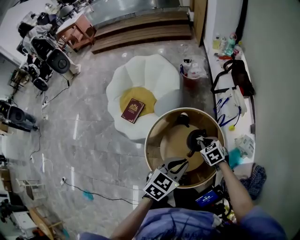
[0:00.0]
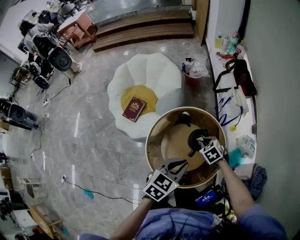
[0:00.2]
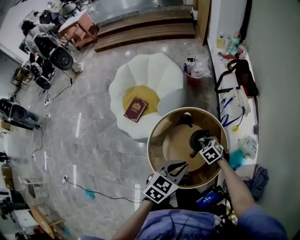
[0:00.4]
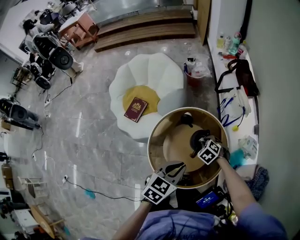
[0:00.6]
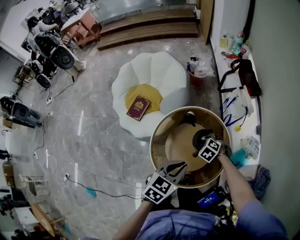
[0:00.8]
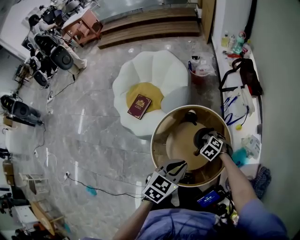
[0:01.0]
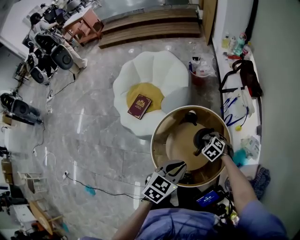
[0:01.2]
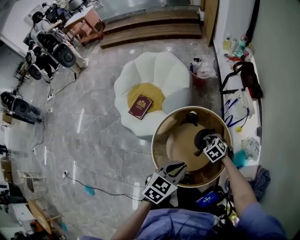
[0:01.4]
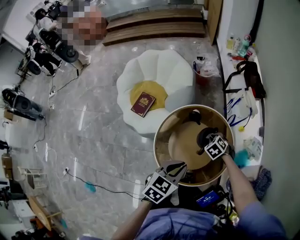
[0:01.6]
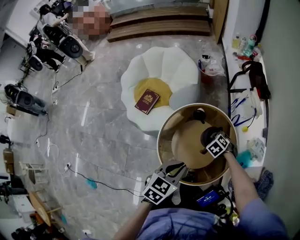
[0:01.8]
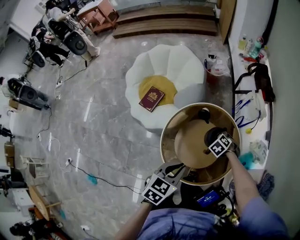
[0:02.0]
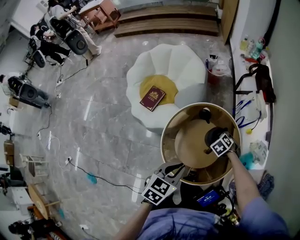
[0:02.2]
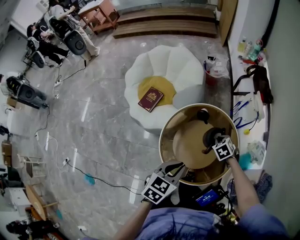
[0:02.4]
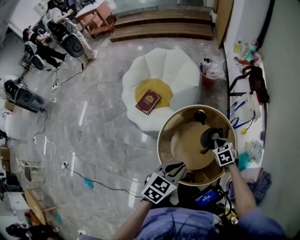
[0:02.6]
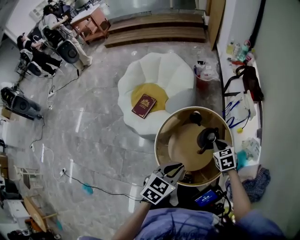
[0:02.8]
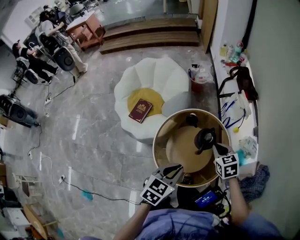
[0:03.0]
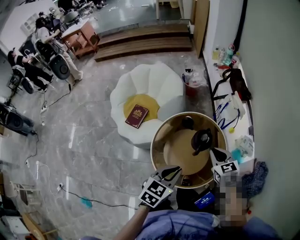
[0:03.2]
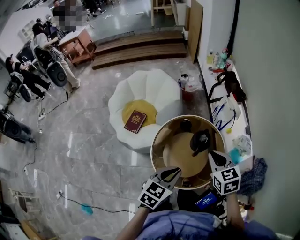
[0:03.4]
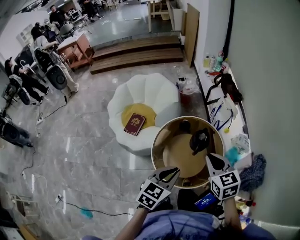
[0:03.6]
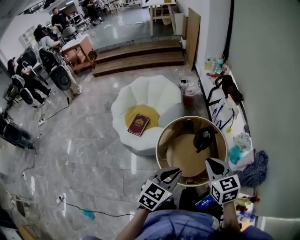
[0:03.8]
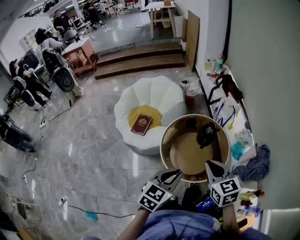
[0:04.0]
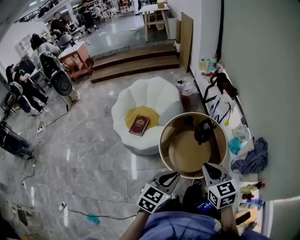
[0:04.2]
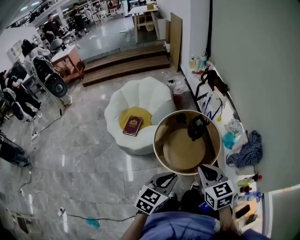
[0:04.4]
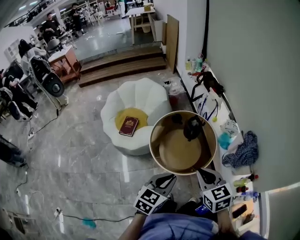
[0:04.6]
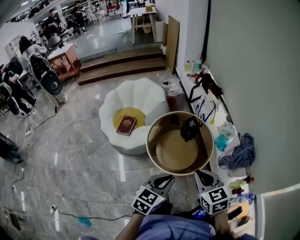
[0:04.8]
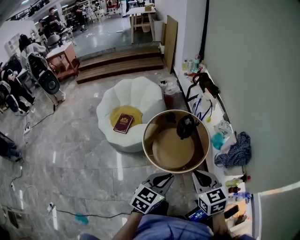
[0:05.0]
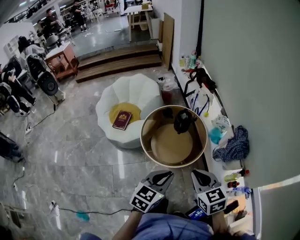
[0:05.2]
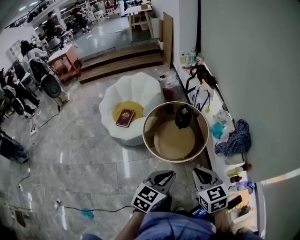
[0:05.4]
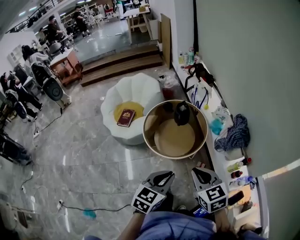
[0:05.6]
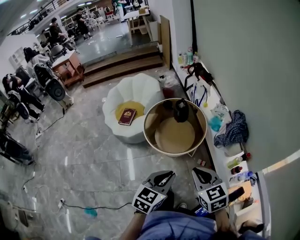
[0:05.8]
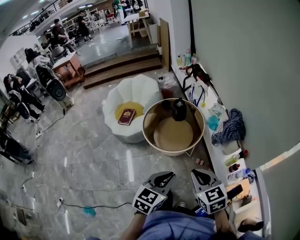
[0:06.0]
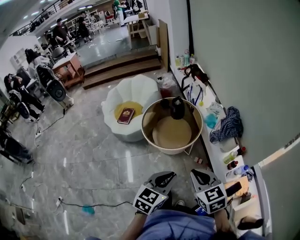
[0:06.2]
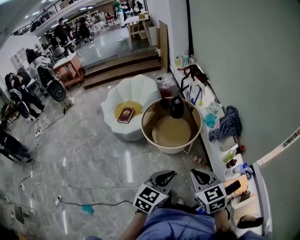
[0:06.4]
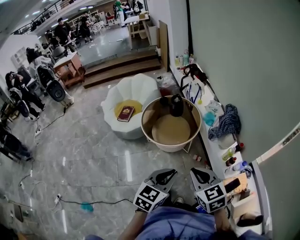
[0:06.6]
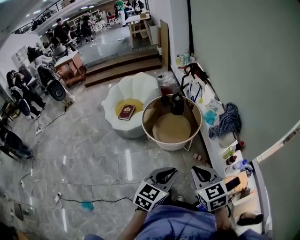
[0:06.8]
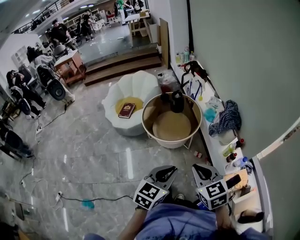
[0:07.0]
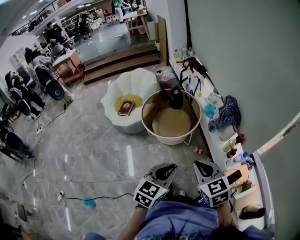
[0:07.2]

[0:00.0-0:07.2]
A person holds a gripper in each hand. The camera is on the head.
0:00.0 to 0:01.4: The left gripper ends up about 5 cm from where it was.
0:01.4 to 0:02.8: The right gripper heads upward, covering about 10 cm, and swivels approximately 20 degrees, while the left gripper moves approximately 5 cm.
0:02.8 to 0:04.4: The right gripper is displaced backward and upward by approximately 40 cm, and turns by about 30 degrees, while the left gripper moves backward, about 25 cm.
0:04.4 to 0:05.8: Both grippers travel together backward and to the right, roughly 25 cm.
0:05.8 to 0:07.2: The left gripper travels backward and to the right by roughly 15 cm. The right gripper heads backward, covering about 10 cm.

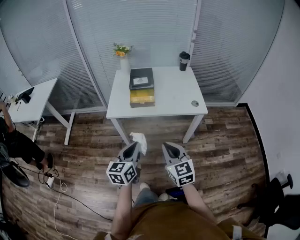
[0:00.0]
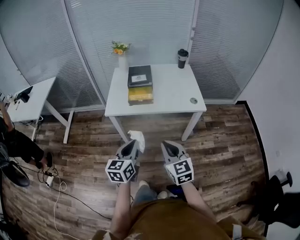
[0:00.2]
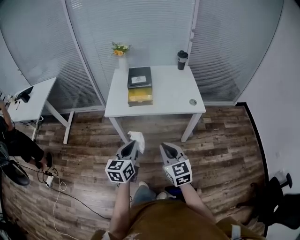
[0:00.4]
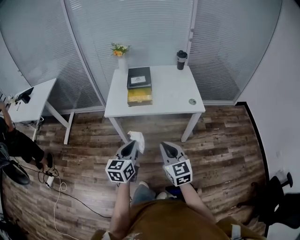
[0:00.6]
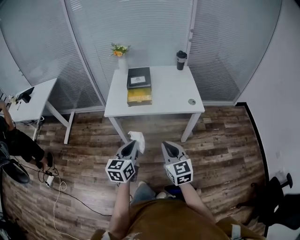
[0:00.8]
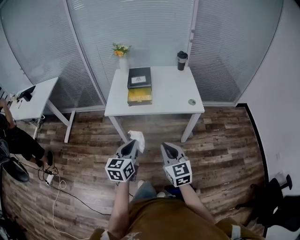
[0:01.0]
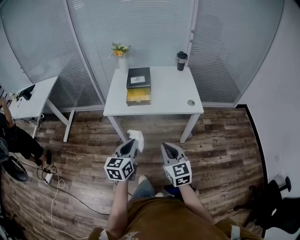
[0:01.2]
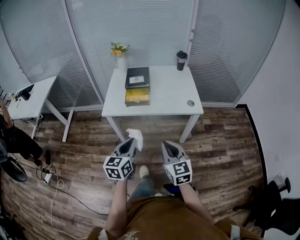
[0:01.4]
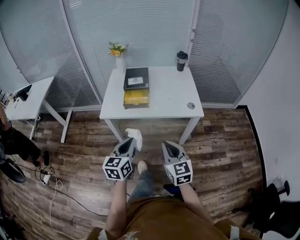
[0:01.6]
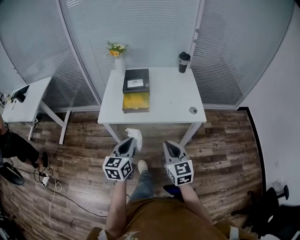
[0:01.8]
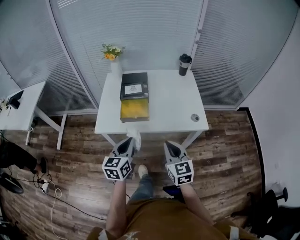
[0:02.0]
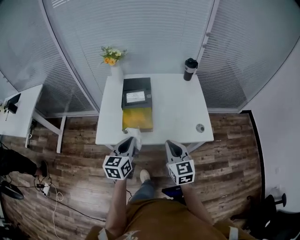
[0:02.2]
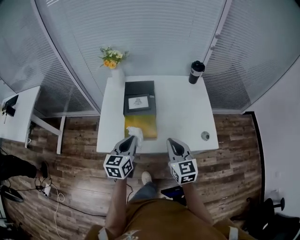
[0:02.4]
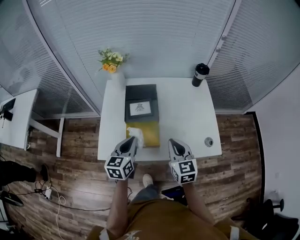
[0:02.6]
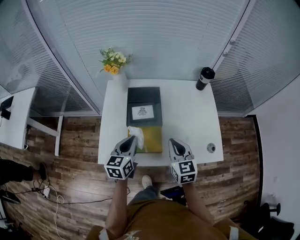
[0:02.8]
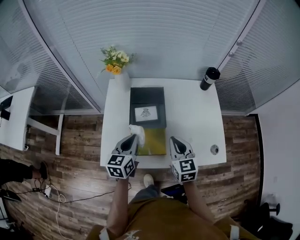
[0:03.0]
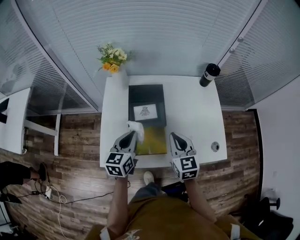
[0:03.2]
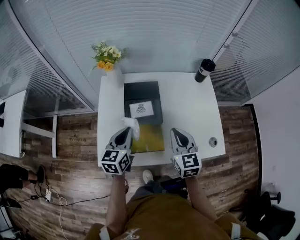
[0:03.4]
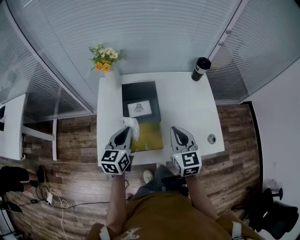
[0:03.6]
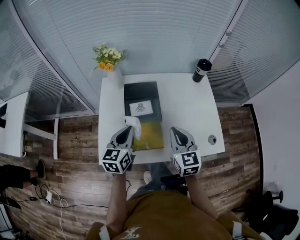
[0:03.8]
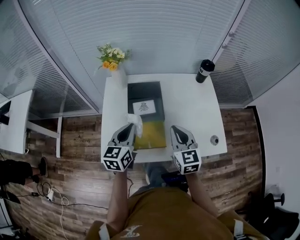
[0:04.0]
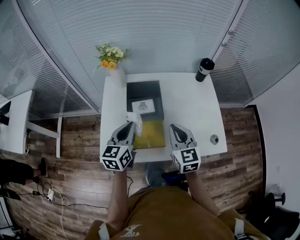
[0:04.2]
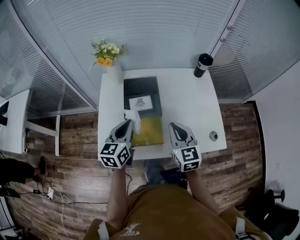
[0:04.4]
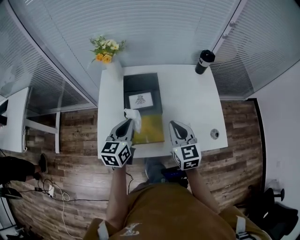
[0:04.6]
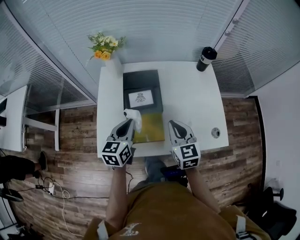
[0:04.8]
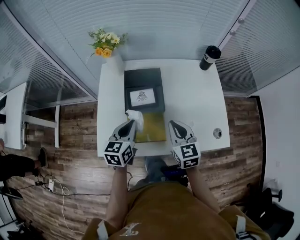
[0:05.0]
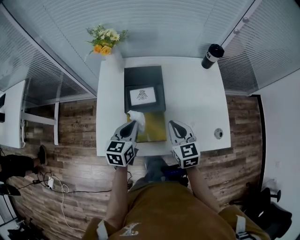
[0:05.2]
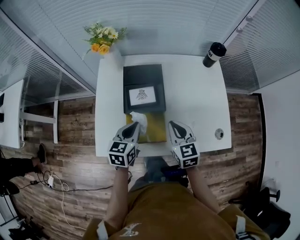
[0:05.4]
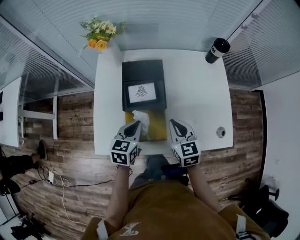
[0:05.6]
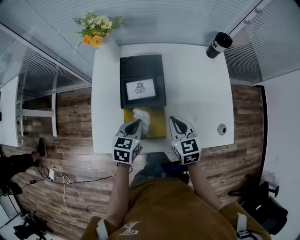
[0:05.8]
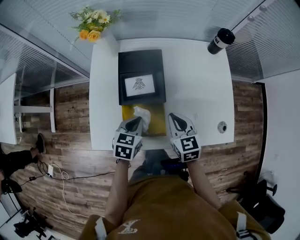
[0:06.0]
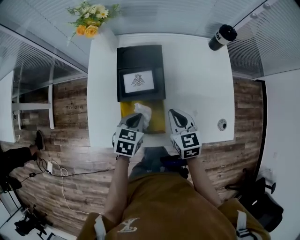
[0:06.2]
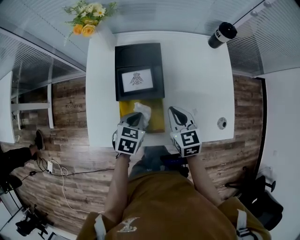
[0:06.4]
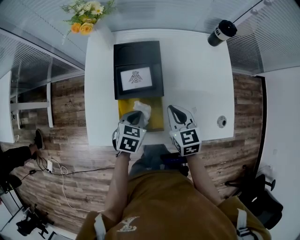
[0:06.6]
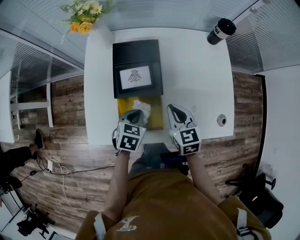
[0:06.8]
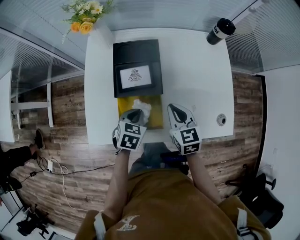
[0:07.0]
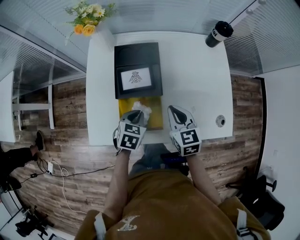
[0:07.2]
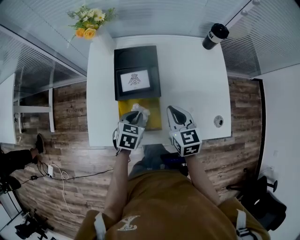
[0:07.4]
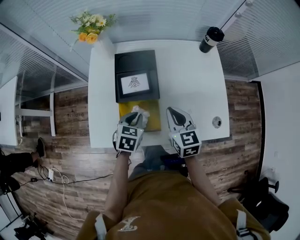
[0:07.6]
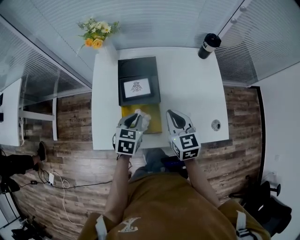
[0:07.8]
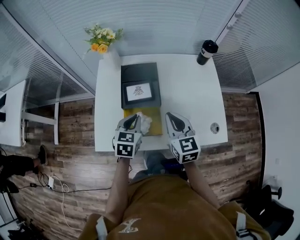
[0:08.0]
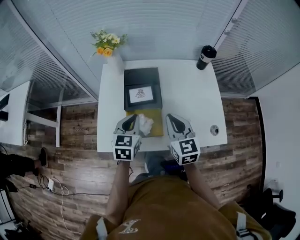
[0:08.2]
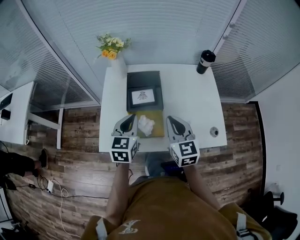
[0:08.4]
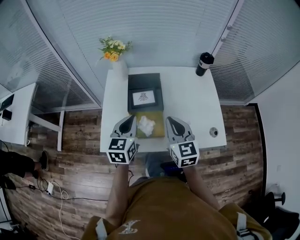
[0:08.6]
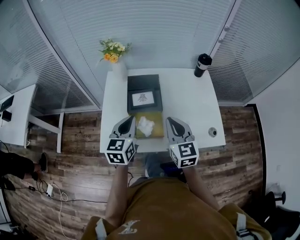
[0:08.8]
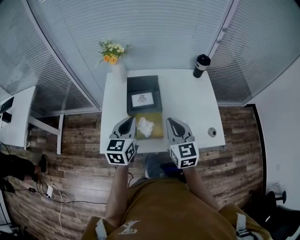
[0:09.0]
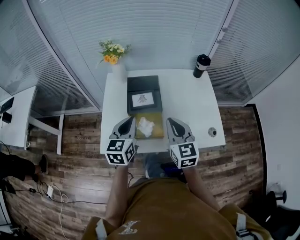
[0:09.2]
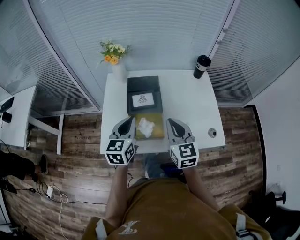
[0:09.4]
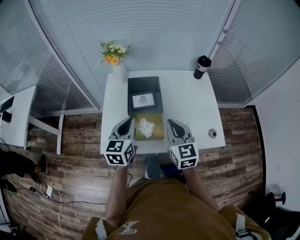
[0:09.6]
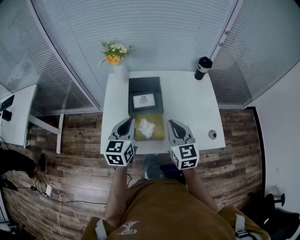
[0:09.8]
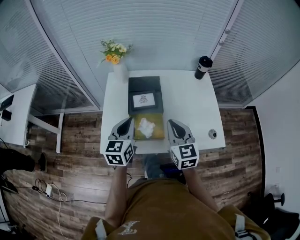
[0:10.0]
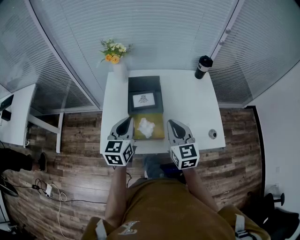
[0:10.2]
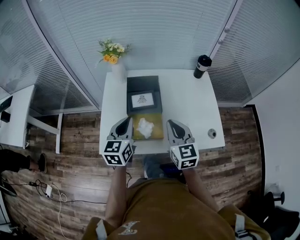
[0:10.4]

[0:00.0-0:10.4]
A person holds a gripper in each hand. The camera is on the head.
0:00.0 to 0:01.4: The grippers stay close to where they were, moving slightly.
0:01.4 to 0:03.0: Both grippers are carried forward, about 50 cm.
0:03.0 to 0:04.4: The grippers move only a little.
0:04.4 to 0:06.0: Both grippers move downward, some 15 cm. The left gripper swivels some 30 degrees.
0:06.0 to 0:07.4: The grippers make only small movements.
0:07.4 to 0:09.0: The right gripper heads upward and backward, covering approximately 15 cm. The left gripper shifts roughly 20 cm upward, and tilts its fingers roughly 40 degrees upward.
0:09.0 to 0:10.4: The grippers move only a little.

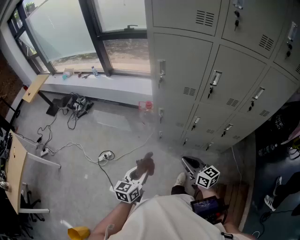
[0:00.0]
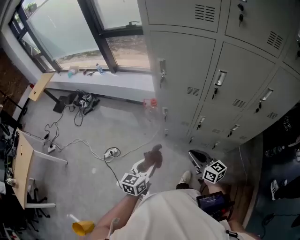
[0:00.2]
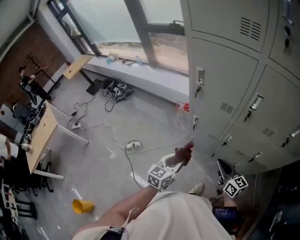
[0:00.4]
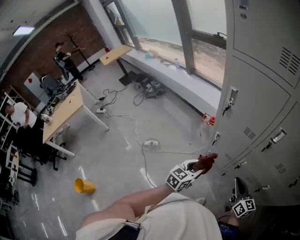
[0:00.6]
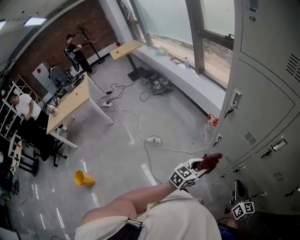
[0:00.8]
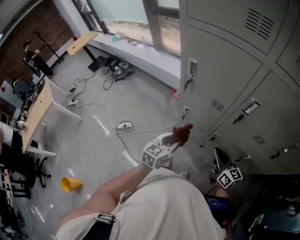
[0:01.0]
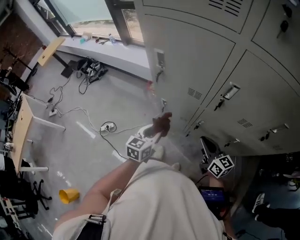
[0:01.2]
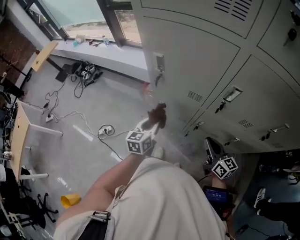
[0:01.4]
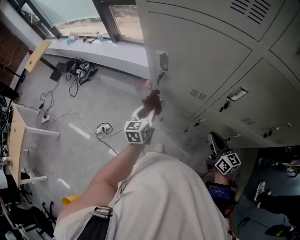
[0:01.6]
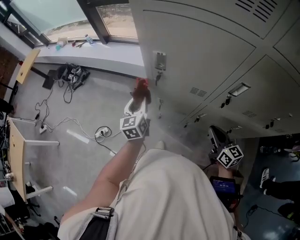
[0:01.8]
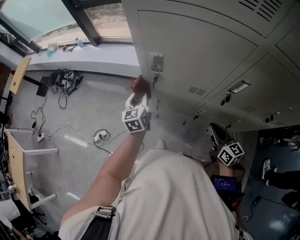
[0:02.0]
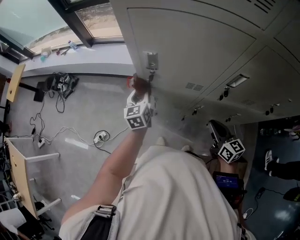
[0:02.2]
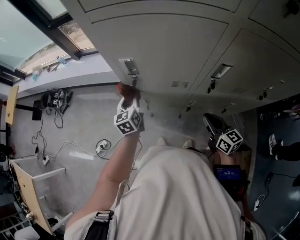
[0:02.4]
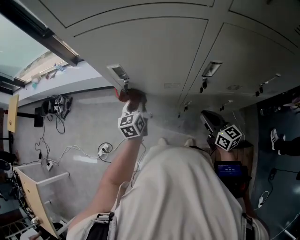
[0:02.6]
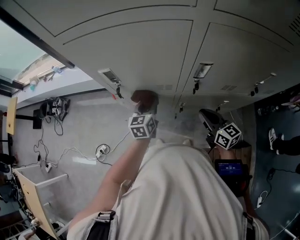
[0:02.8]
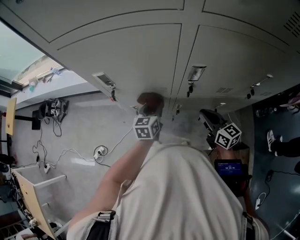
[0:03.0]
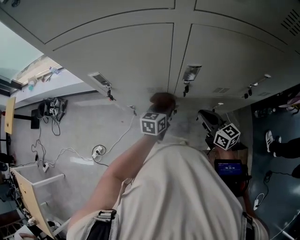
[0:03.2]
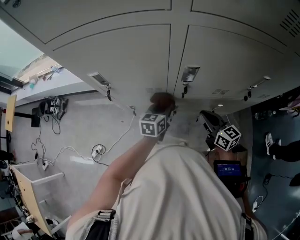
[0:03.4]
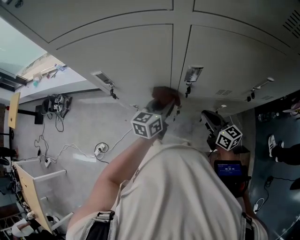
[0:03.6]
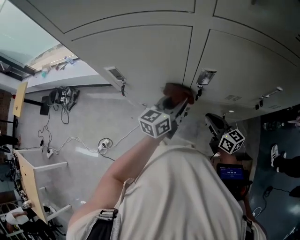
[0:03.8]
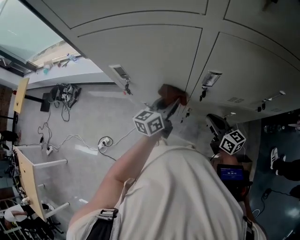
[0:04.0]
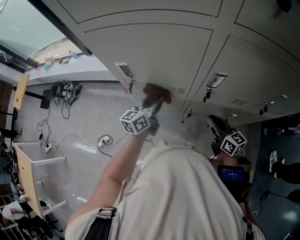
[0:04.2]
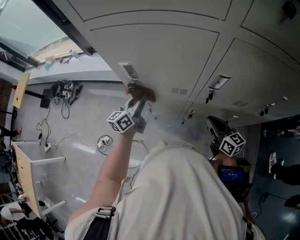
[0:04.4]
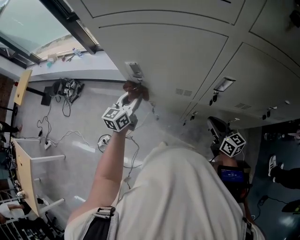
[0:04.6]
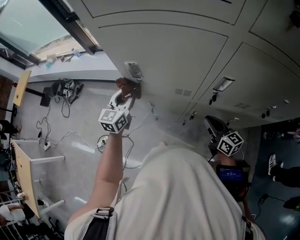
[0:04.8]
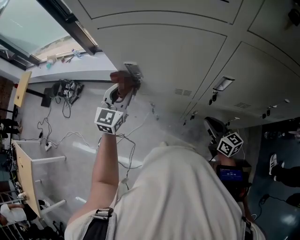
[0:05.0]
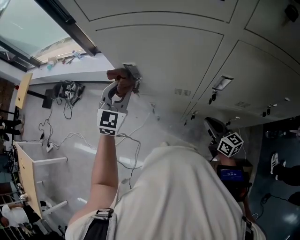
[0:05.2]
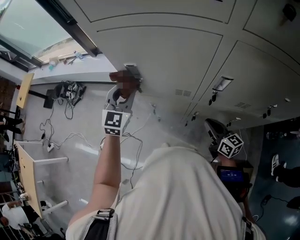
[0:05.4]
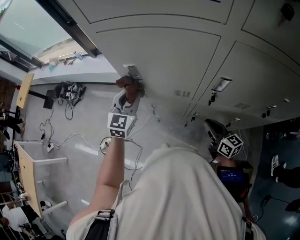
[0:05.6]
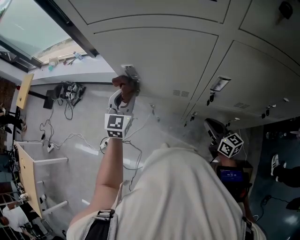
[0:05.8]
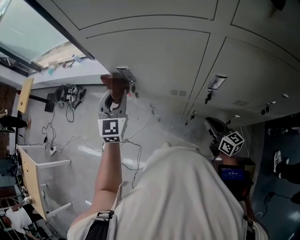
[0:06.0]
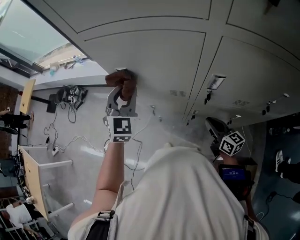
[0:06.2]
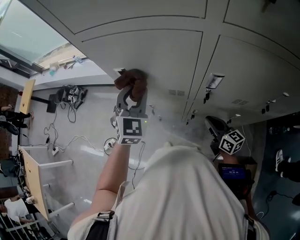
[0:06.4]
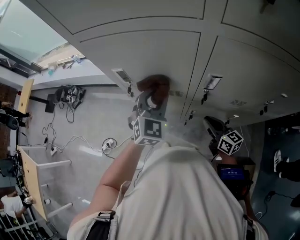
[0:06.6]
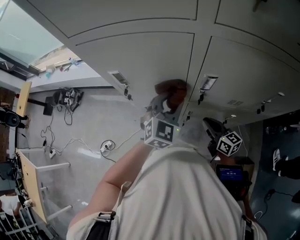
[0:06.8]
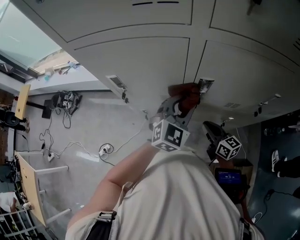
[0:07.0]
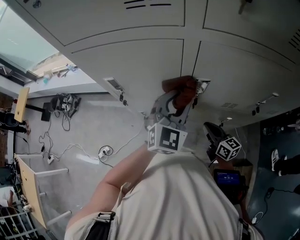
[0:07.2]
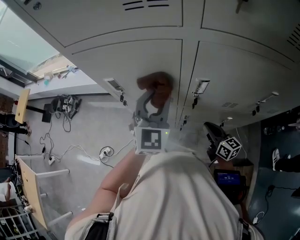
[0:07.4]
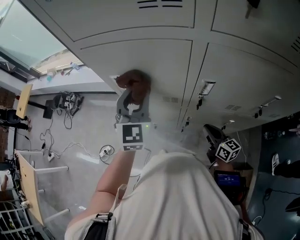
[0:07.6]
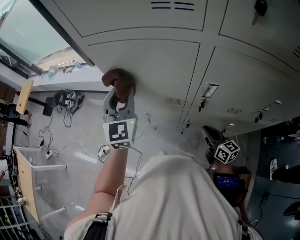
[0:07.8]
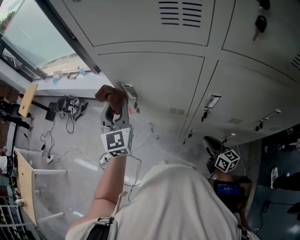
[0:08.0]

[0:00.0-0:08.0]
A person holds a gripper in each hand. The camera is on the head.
0:00.0 to 0:01.6: The left gripper heads forward, covering some 35 cm. The right gripper moves to the right and forward, some 30 cm.
0:01.6 to 0:03.2: The right gripper moves some 5 cm, while the left gripper shifts by about 25 cm, and swivels about 40 degrees.
0:03.2 to 0:04.8: The left gripper shifts about 25 cm to the left, and rotates roughly 30 degrees; the right gripper shifts roughly 5 cm to the left.
0:04.8 to 0:06.4: The left gripper swings up and down, some 10 cm each way, with 2 reversals, and swivels approximately 40 degrees.
0:06.4 to 0:08.0: The left gripper goes to the right and returns, approximately 20 cm each way, and rotates approximately 30 degrees.
